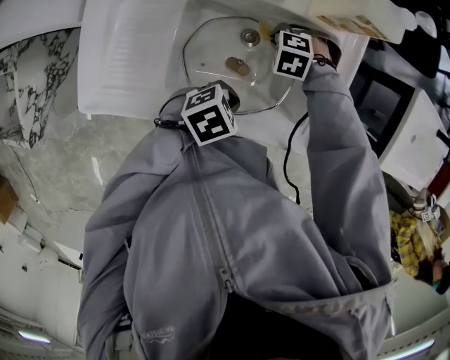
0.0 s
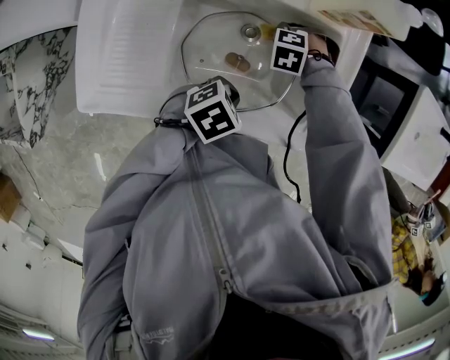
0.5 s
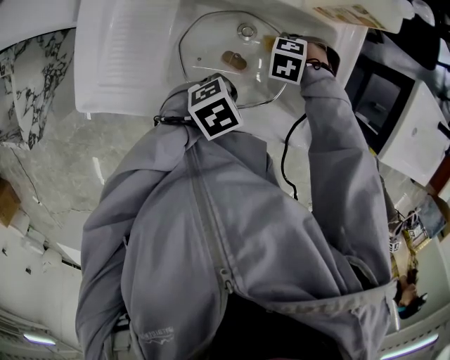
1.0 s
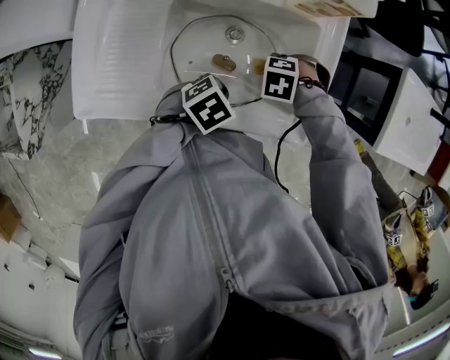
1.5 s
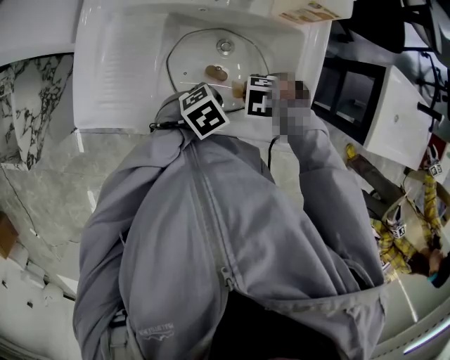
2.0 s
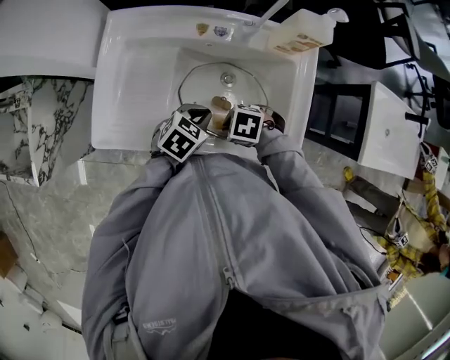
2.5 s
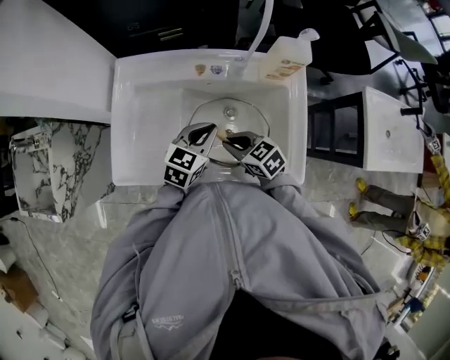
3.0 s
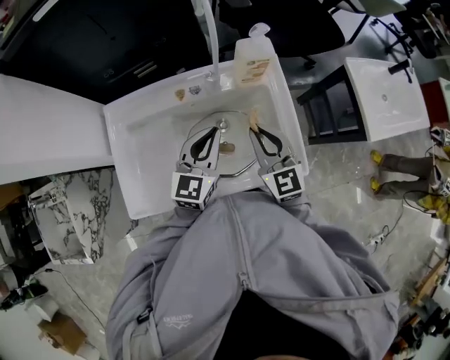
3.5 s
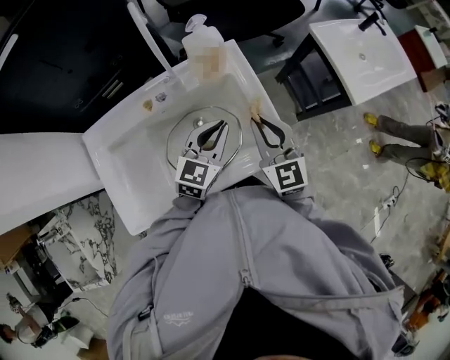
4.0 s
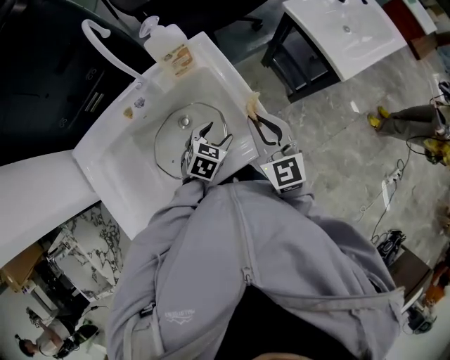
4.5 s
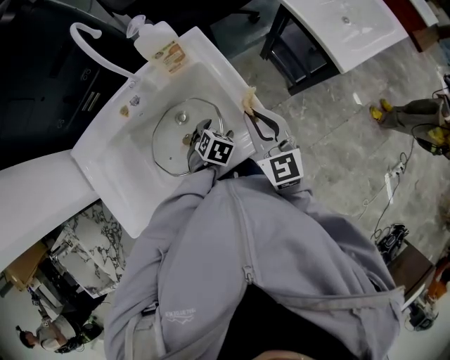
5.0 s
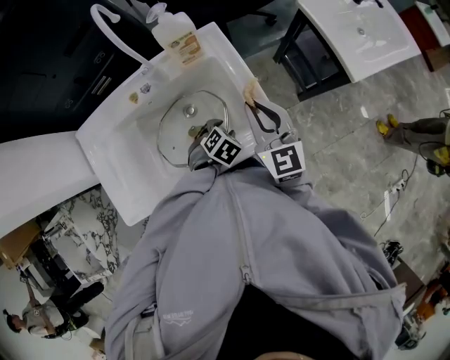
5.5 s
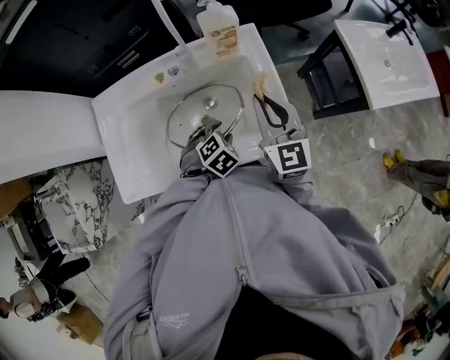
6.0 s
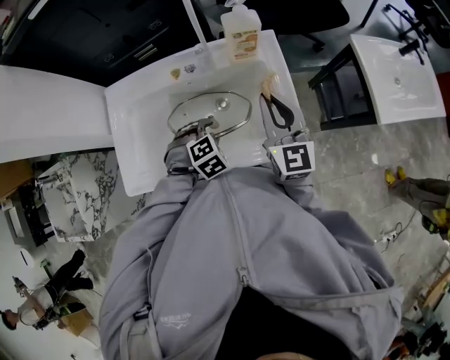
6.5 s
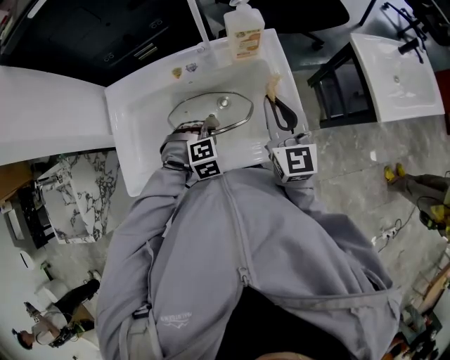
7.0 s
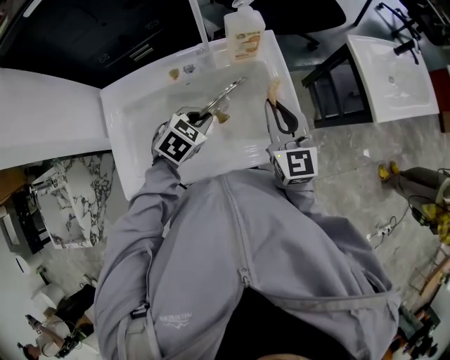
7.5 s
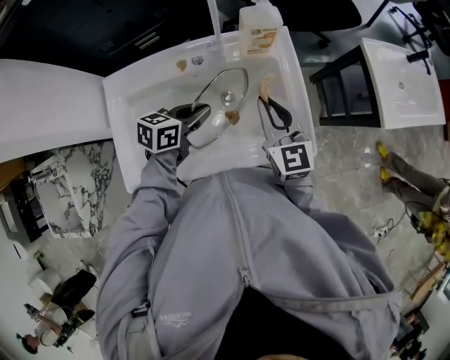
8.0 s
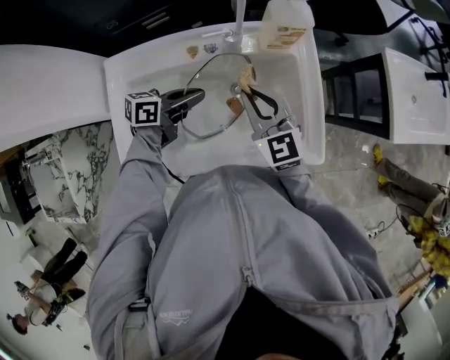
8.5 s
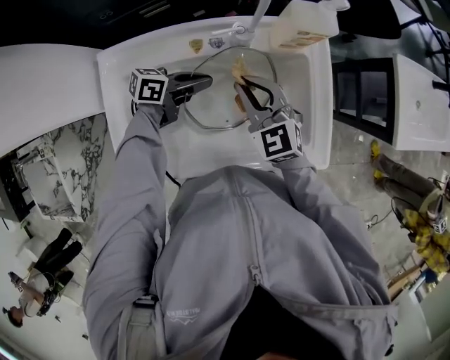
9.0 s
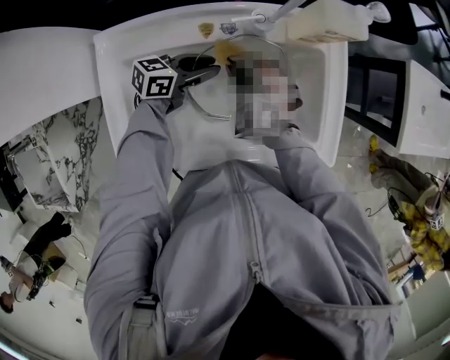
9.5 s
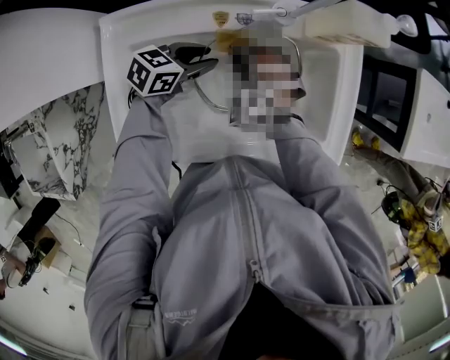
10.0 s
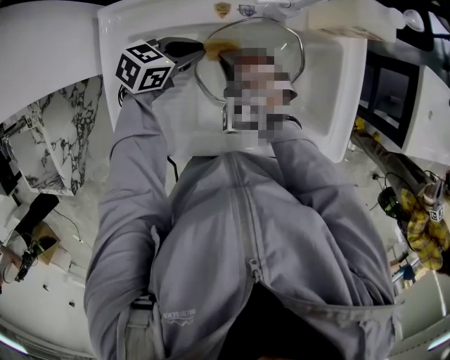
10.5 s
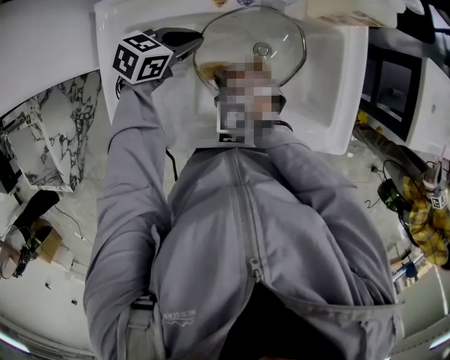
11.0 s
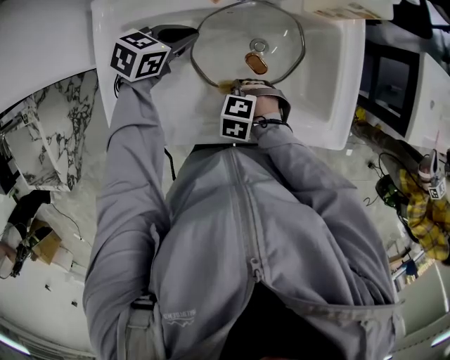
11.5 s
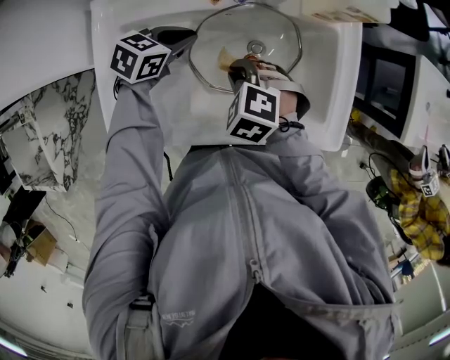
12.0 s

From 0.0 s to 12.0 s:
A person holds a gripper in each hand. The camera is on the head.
From 0.0 s to 2.0 s: The right gripper changes place by roughly 15 cm, and rotates approximately 20 degrees.
From 2.0 s to 4.0 s: The grippers both shift upward by about 20 cm. The left gripper tips its fingers upward by roughly 40 degrees, while the right gripper angles its fingers upward, by some 60 degrees.
From 4.0 s to 6.0 s: The left gripper is displaced downward and backward by some 15 cm, points its fingers roughly 50 degrees further downward, and opens.
From 6.0 s to 8.0 s: The right gripper is displaced to the left by some 5 cm. The left gripper heads to the left, upward and forward, covering about 15 cm, tips its fingers upward by about 40 degrees, and closes its fingers.
From 8.0 s to 10.0 s: The left gripper moves to the left and downward, about 15 cm, and opens its fingers, while the right gripper travels to the left and downward by some 25 cm, and twists some 60 degrees counterclockwise, seen from behind.
From 10.0 s to 12.0 s: The right gripper goes downward and returns, about 10 cm each way, and changes its angle by about 30 degrees; the left gripper closes up.

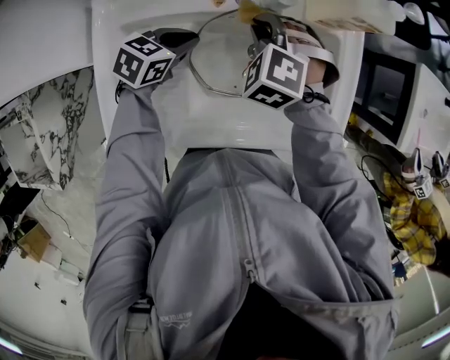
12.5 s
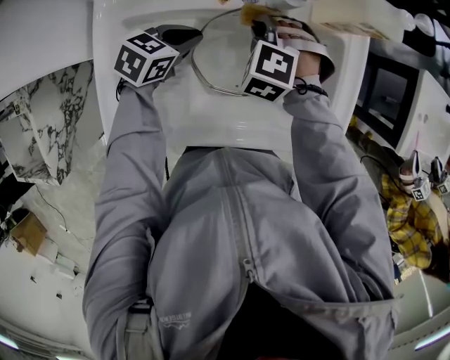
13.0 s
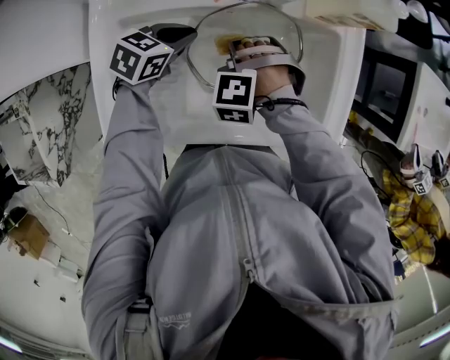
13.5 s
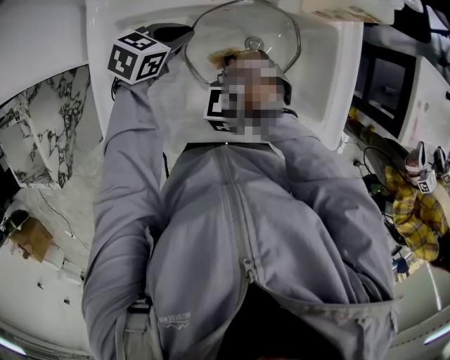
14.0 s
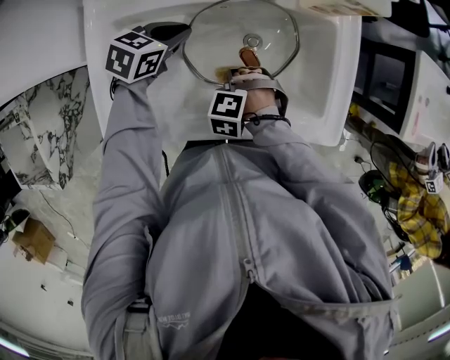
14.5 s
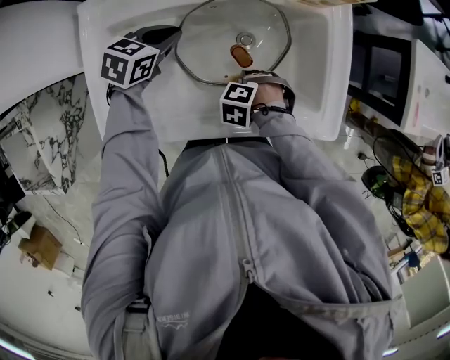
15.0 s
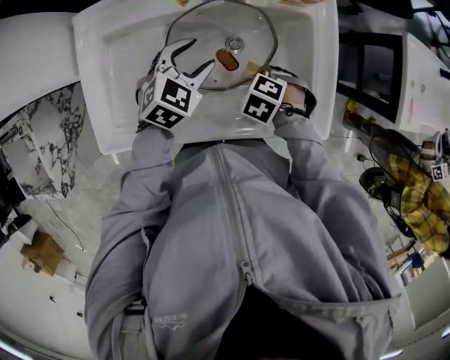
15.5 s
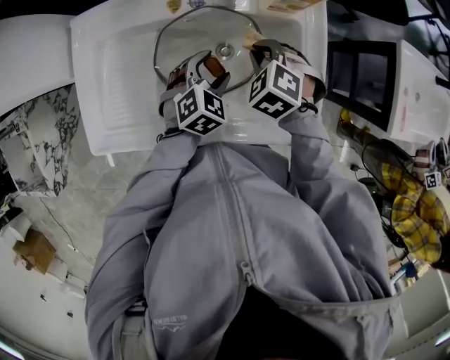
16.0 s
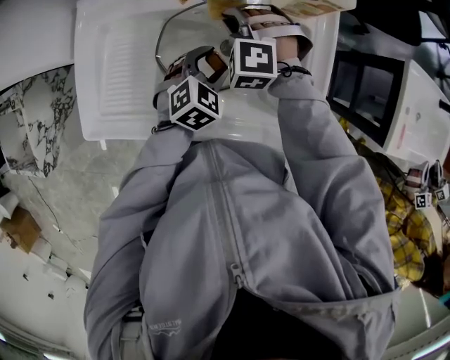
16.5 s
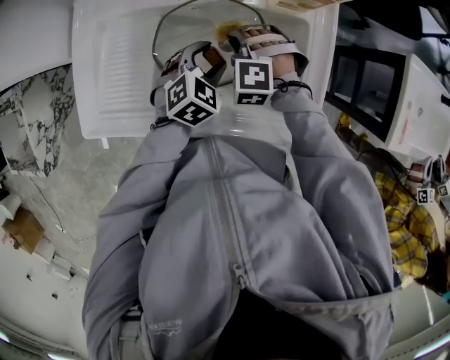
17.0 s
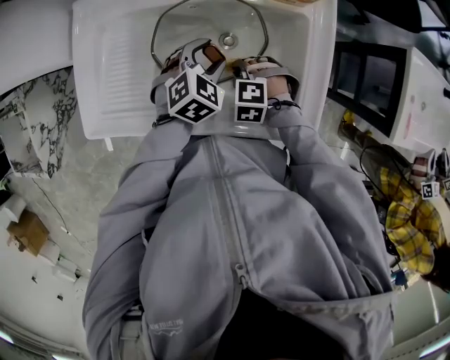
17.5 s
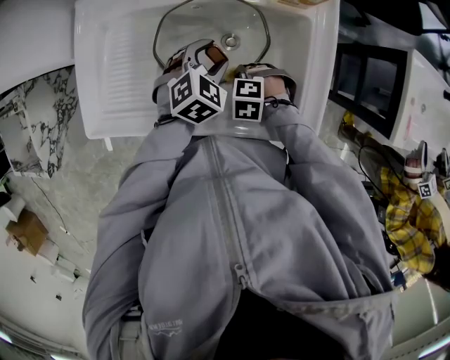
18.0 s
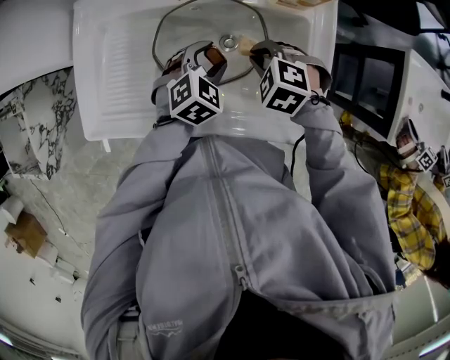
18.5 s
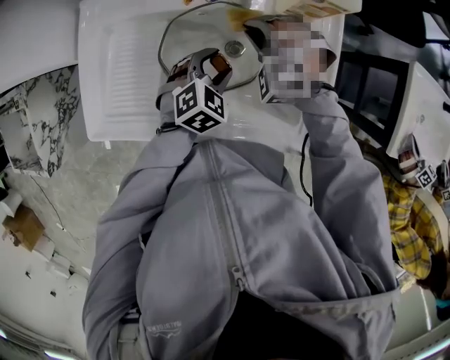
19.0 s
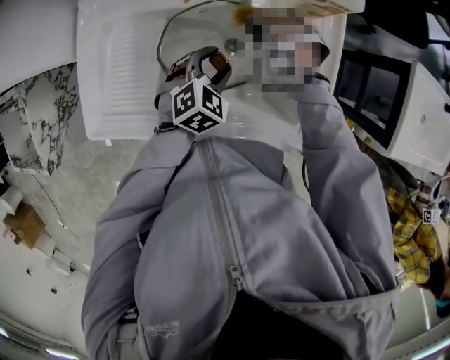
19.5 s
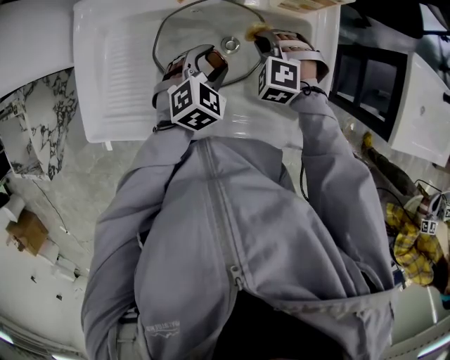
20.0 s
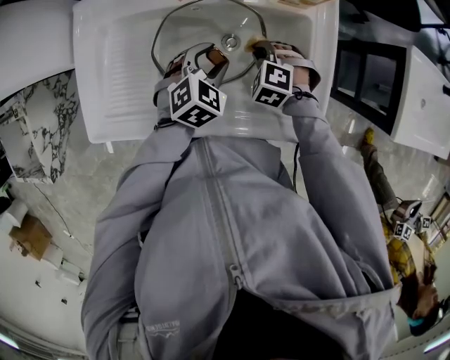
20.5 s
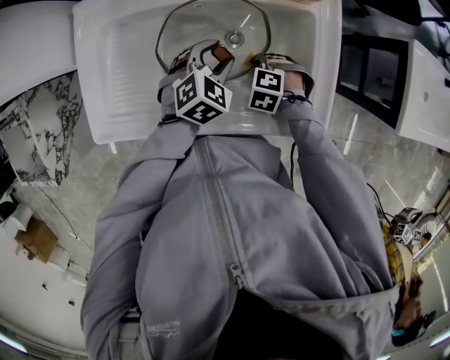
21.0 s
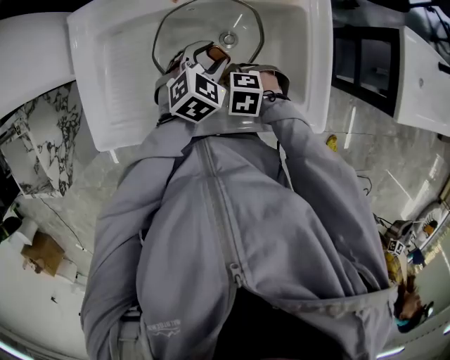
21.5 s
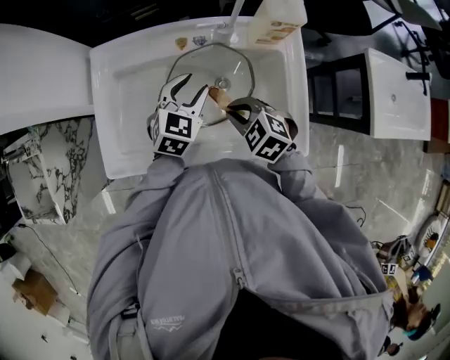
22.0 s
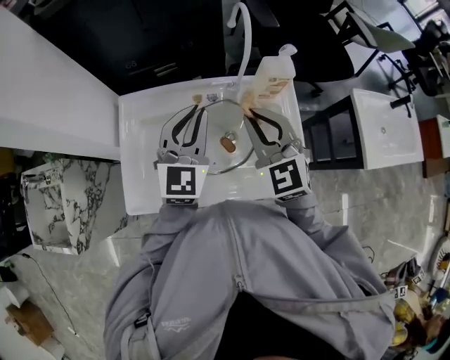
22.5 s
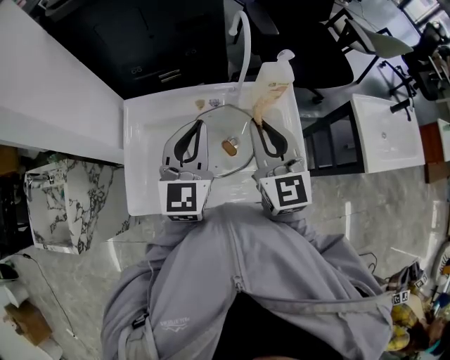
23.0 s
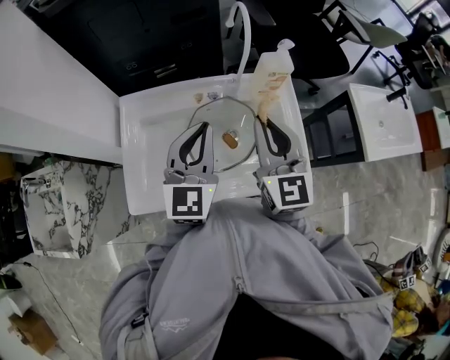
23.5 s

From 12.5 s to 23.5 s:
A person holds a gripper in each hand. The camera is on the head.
From 12.5 s to 14.5 s: The right gripper changes place by some 20 cm, and swivels about 30 degrees.
From 14.5 s to 16.0 s: The left gripper ends up roughly 15 cm from where it was, changes its angle by roughly 30 degrees, and opens. The right gripper moves some 20 cm, and changes its angle by roughly 30 degrees.
From 16.0 s to 18.0 s: The right gripper is displaced downward by about 15 cm, and swivels approximately 40 degrees.
From 18.0 s to 20.0 s: The right gripper moves some 15 cm, and changes its angle by about 30 degrees.
From 20.0 s to 21.5 s: The right gripper changes place by about 20 cm, and changes its angle by approximately 40 degrees.
From 21.5 s to 23.5 s: Both grippers travel together upward, approximately 35 cm. The right gripper tilts its fingers roughly 60 degrees upward; the left gripper angles its fingers upward, by about 50 degrees, and closes its fingers.

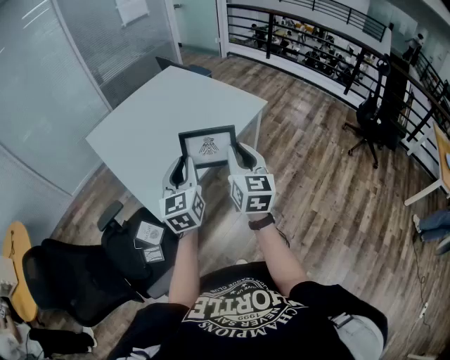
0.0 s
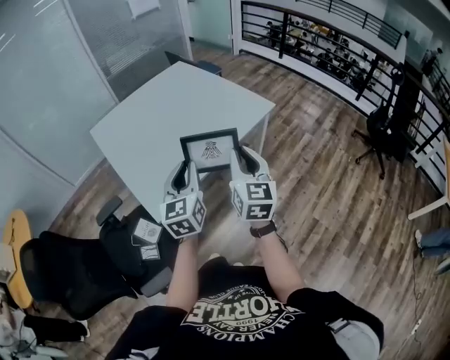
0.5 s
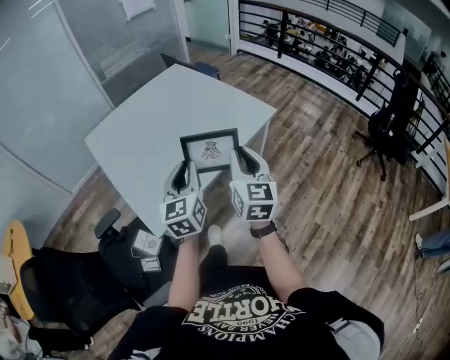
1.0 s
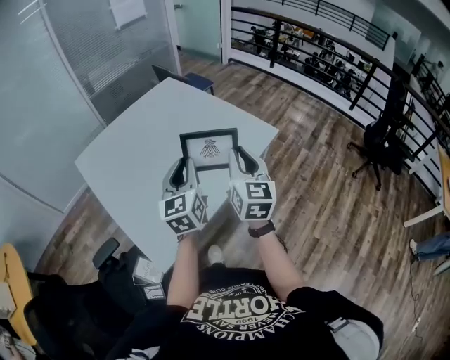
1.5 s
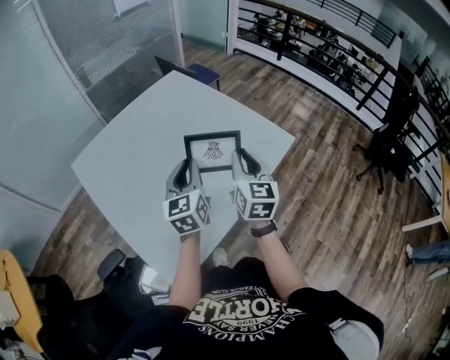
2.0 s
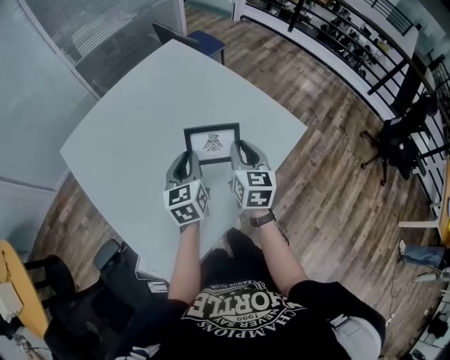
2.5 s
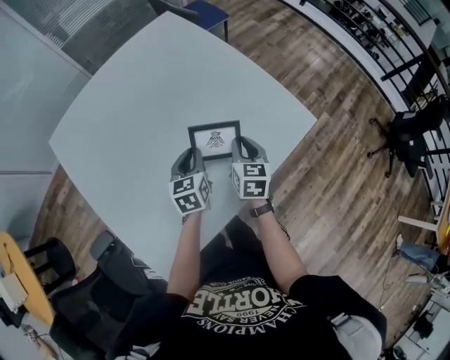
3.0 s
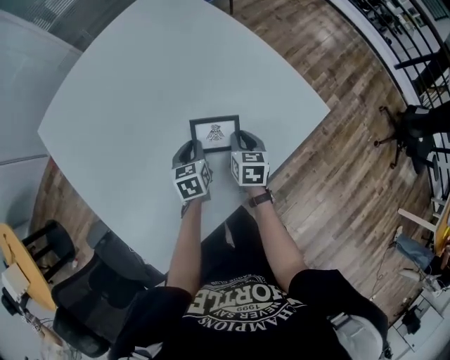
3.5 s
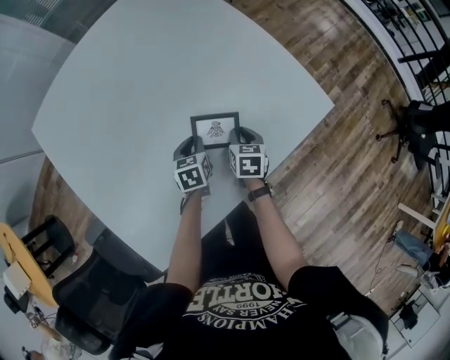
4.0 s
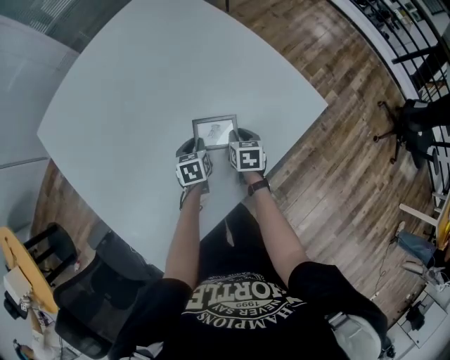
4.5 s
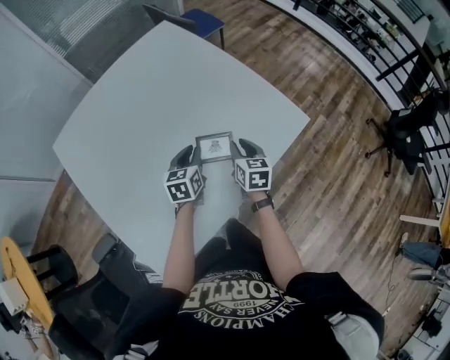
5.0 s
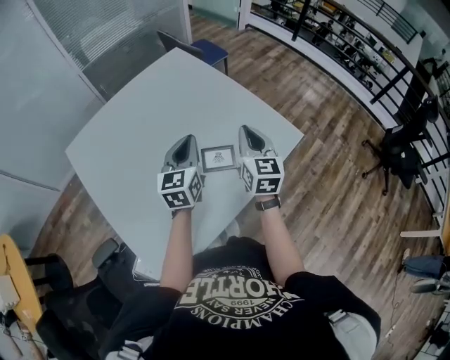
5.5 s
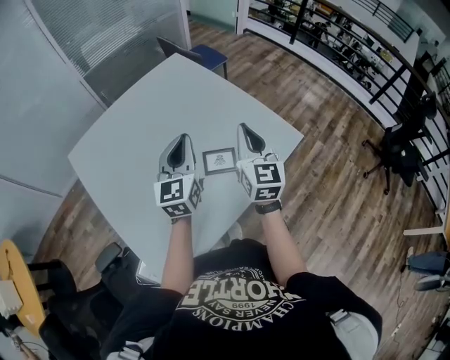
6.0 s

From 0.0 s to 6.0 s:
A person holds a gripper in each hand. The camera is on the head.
From 0.0 s to 2.0 s: The pair of grippers is taken forward, some 40 cm.
From 2.0 s to 4.0 s: Both grippers move downward and forward, about 50 cm. The right gripper points its fingers some 40 degrees further downward; the left gripper tilts its fingers some 40 degrees downward.
From 4.0 s to 6.0 s: The grippers both shift upward by about 40 cm. The right gripper points its fingers some 50 degrees further upward, while the left gripper points its fingers about 50 degrees further upward.
